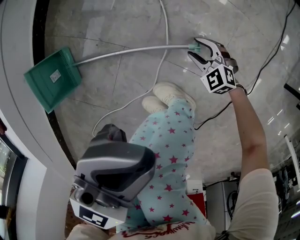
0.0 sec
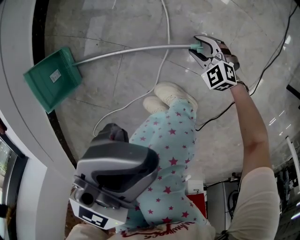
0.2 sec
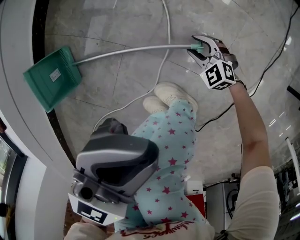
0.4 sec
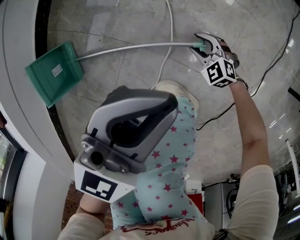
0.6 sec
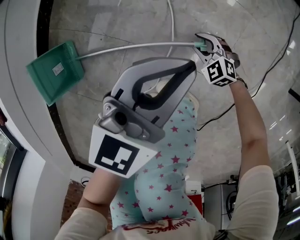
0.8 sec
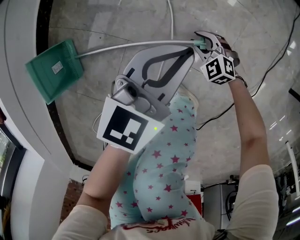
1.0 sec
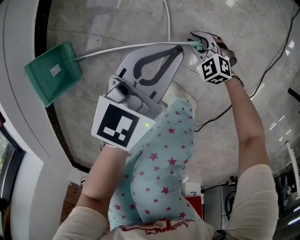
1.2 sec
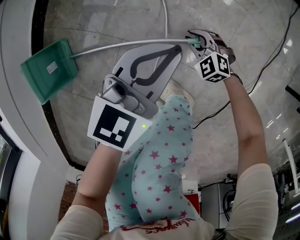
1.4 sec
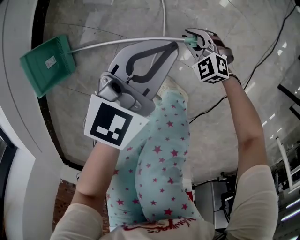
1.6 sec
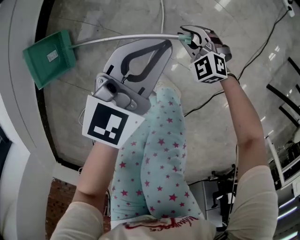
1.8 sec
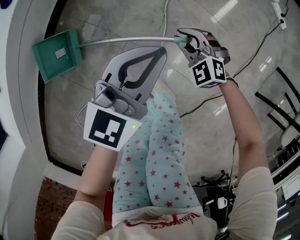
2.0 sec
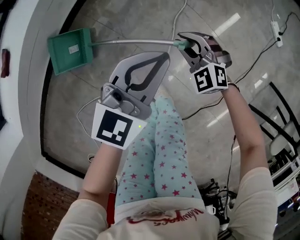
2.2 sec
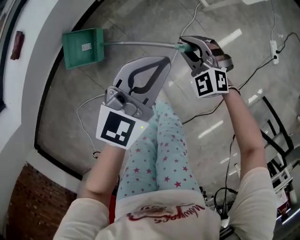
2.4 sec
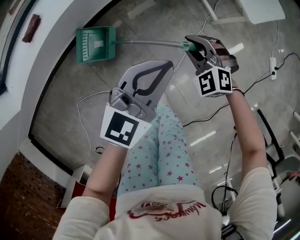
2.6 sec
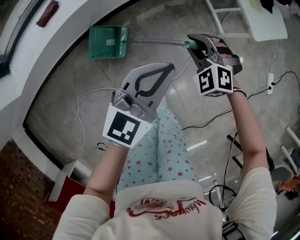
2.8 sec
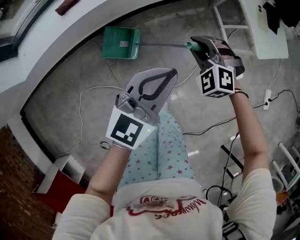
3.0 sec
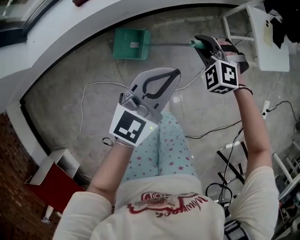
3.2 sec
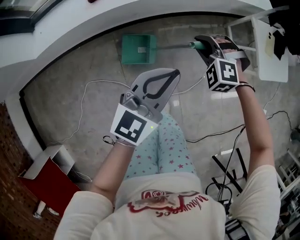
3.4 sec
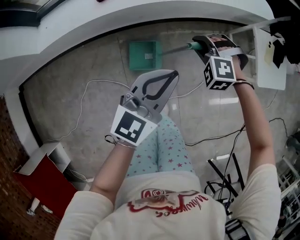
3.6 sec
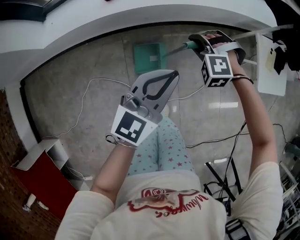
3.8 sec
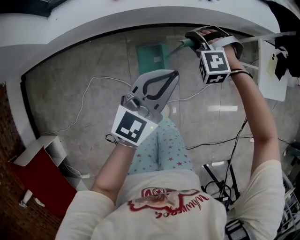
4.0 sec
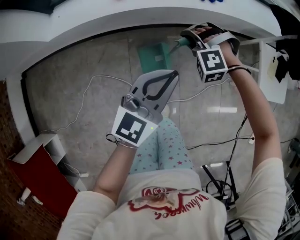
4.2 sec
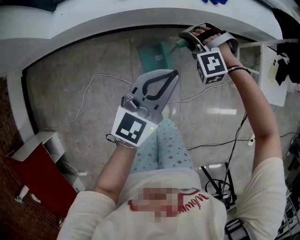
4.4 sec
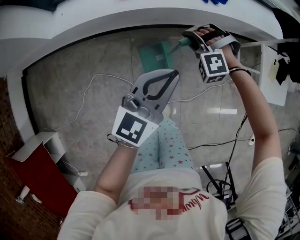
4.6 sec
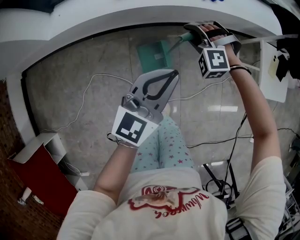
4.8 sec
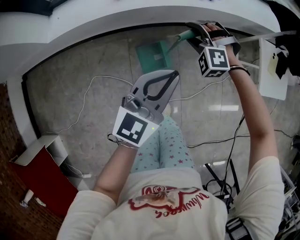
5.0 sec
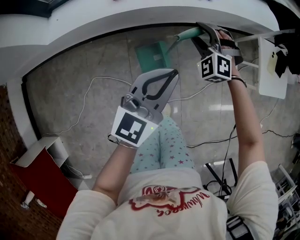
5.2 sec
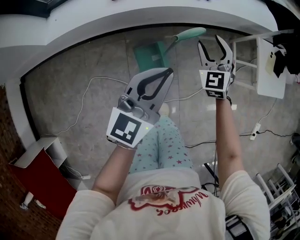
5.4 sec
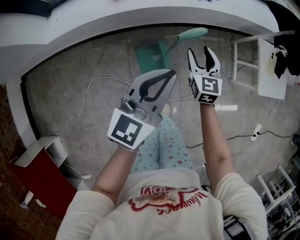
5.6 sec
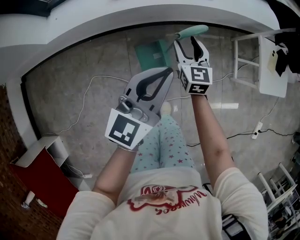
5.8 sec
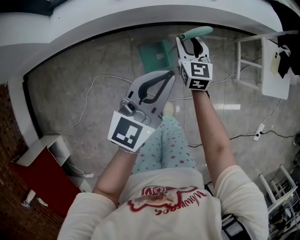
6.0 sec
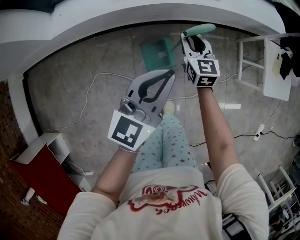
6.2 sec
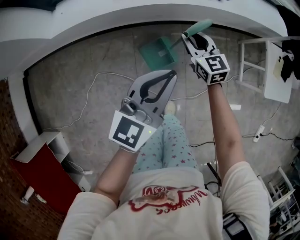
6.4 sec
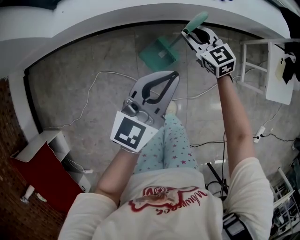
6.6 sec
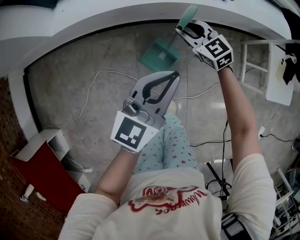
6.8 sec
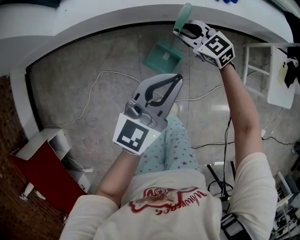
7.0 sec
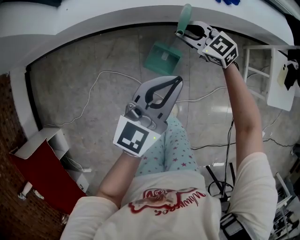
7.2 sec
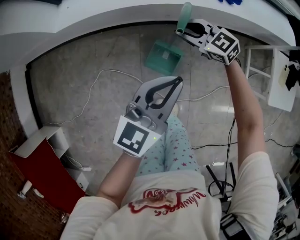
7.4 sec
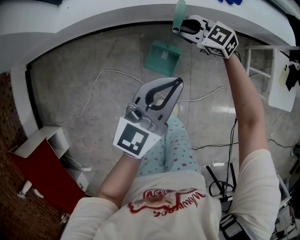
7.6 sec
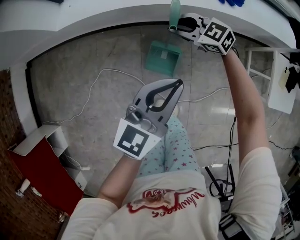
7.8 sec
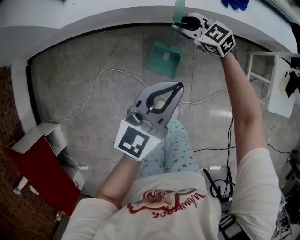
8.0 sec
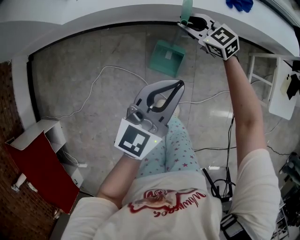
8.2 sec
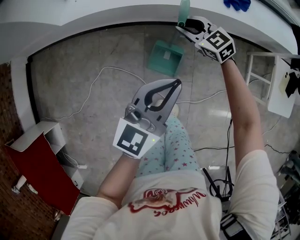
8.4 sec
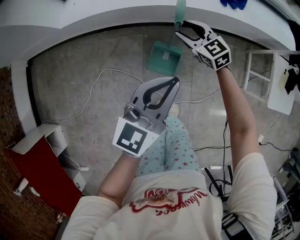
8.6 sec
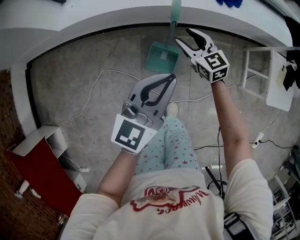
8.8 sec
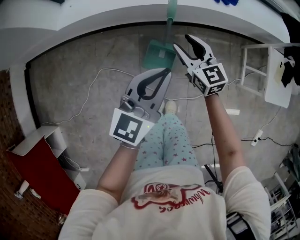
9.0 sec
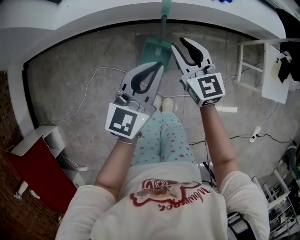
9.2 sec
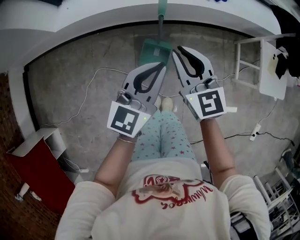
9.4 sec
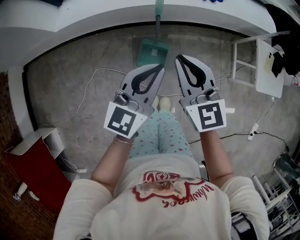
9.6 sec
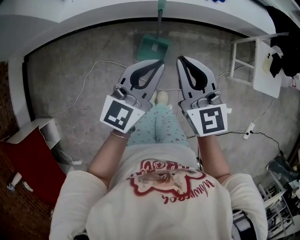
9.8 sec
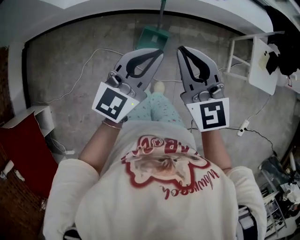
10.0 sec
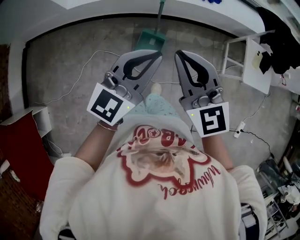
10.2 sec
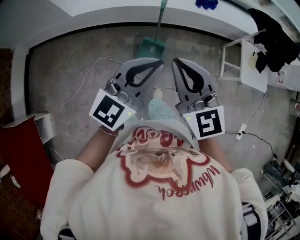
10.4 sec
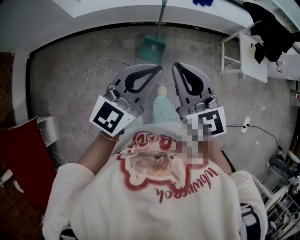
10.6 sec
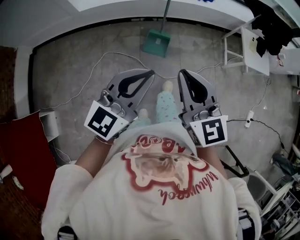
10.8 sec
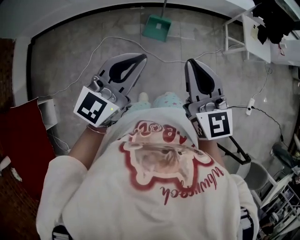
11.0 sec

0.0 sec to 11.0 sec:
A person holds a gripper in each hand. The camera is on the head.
0.0 sec to 1.6 sec: The right gripper closes; the left gripper is displaced downward by roughly 15 cm.
1.6 sec to 3.2 sec: Both grippers travel together upward, approximately 40 cm. The left gripper swivels about 50 degrees. The right gripper rolls counterclockwise, seen from behind, by approximately 60 degrees.
3.2 sec to 4.8 sec: The right gripper travels to the left by approximately 15 cm, and turns by roughly 30 degrees, while the left gripper shifts some 10 cm to the left and upward.
4.8 sec to 6.2 sec: The right gripper reaches some 10 cm to the right, then returns, rotates around the line of its fingers by approximately 90 degrees, clockwise from behind, and opens, then closes again.
6.2 sec to 7.8 sec: The right gripper ends up about 10 cm from where it was, and changes its angle by some 60 degrees.
7.8 sec to 9.4 sec: The right gripper shifts roughly 20 cm upward and backward, changes its angle by about 50 degrees, and opens and closes again.
9.4 sec to 11.0 sec: Both grippers are carried backward, approximately 40 cm. The two grippers go roughly 20 cm upward.

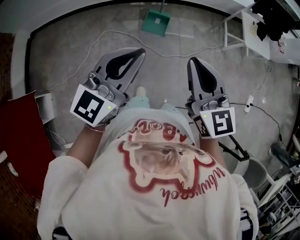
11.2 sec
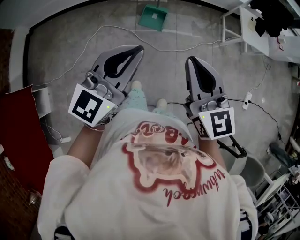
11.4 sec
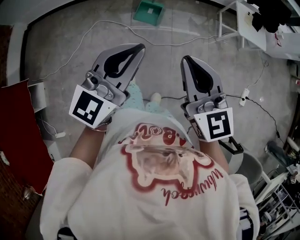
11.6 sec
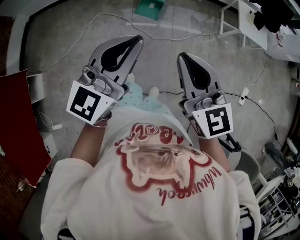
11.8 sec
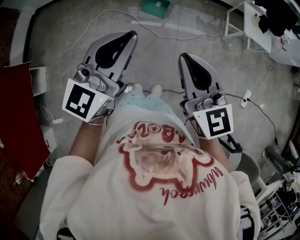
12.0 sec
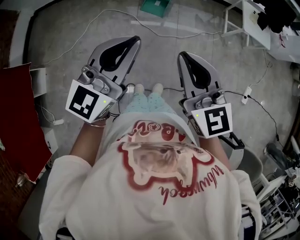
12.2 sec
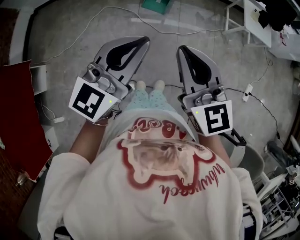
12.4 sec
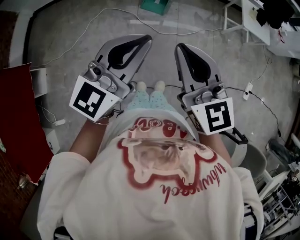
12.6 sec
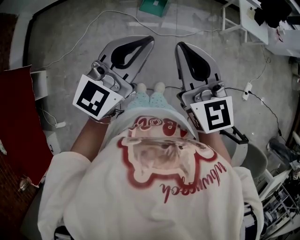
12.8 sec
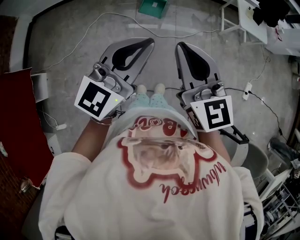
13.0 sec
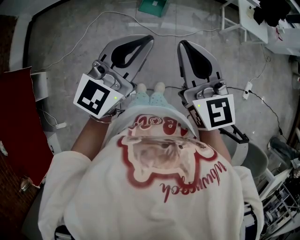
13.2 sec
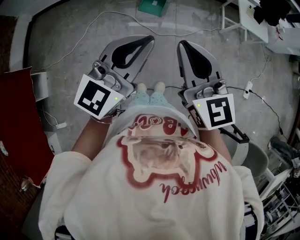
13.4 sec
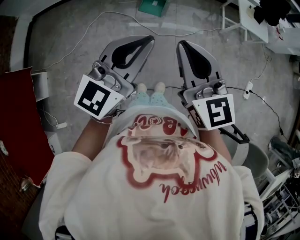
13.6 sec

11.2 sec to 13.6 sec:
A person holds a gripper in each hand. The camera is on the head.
11.2 sec to 12.4 sec: The right gripper is displaced backward by approximately 15 cm. The left gripper shifts about 15 cm backward and to the right.
12.4 sec to 13.6 sec: The grippers make only small movements.

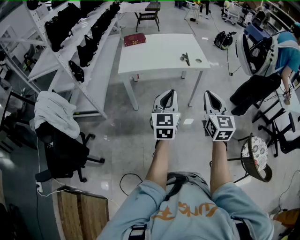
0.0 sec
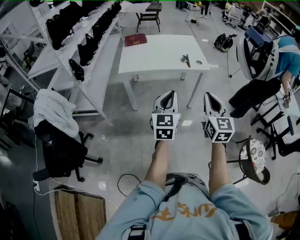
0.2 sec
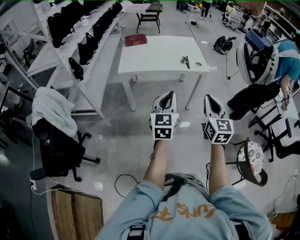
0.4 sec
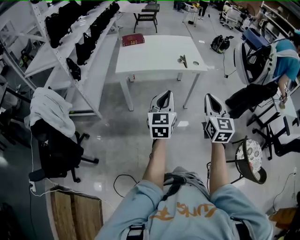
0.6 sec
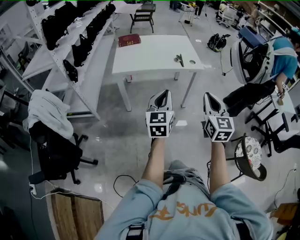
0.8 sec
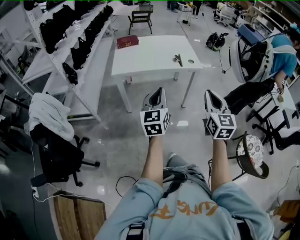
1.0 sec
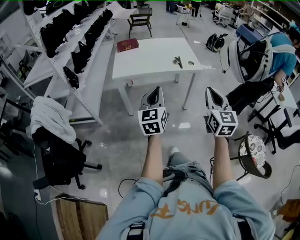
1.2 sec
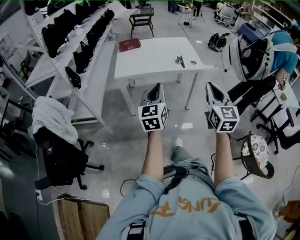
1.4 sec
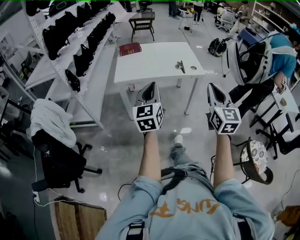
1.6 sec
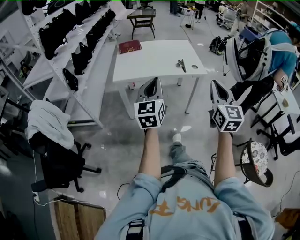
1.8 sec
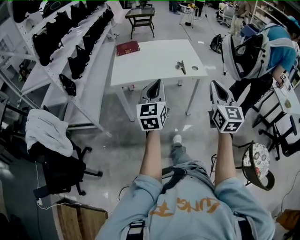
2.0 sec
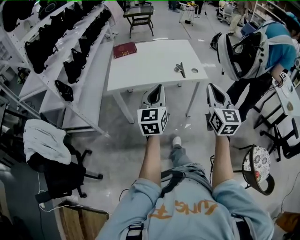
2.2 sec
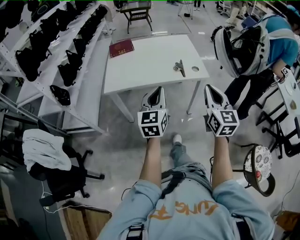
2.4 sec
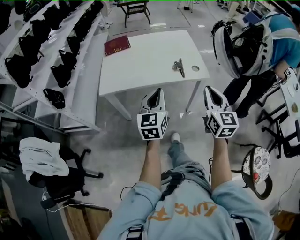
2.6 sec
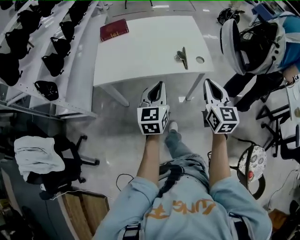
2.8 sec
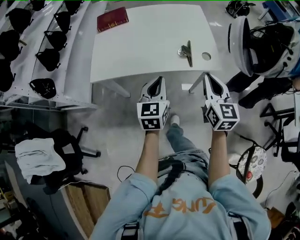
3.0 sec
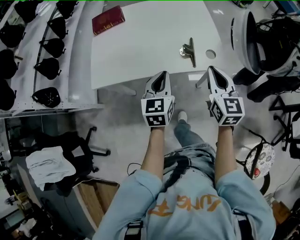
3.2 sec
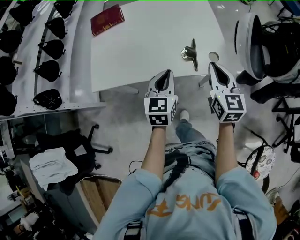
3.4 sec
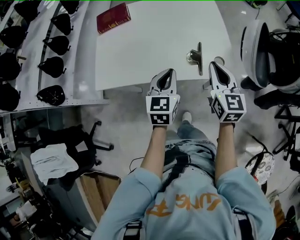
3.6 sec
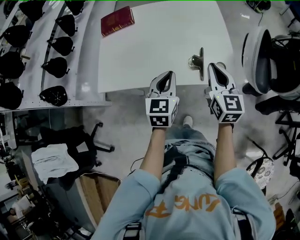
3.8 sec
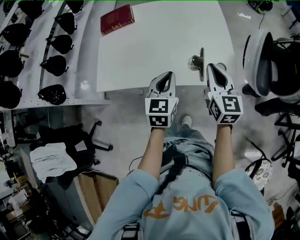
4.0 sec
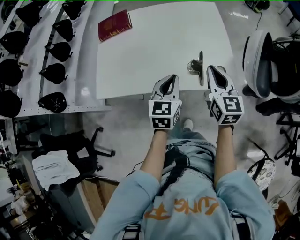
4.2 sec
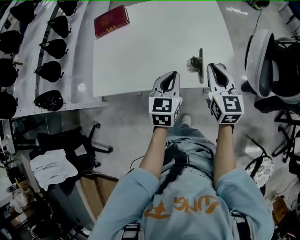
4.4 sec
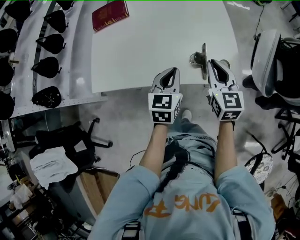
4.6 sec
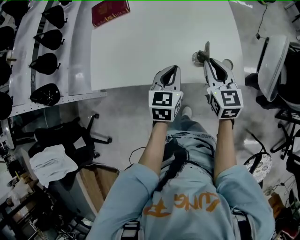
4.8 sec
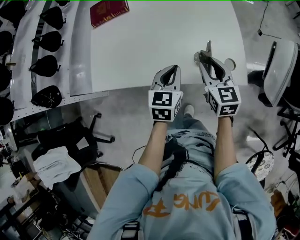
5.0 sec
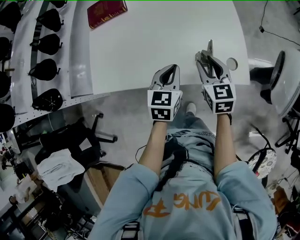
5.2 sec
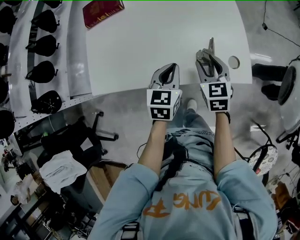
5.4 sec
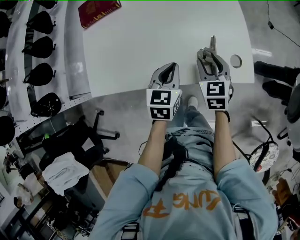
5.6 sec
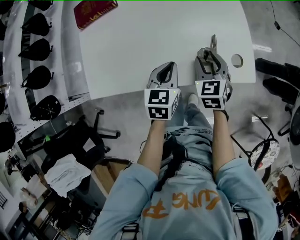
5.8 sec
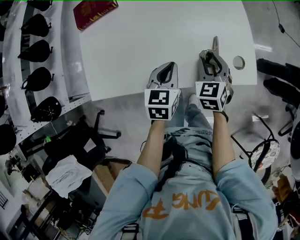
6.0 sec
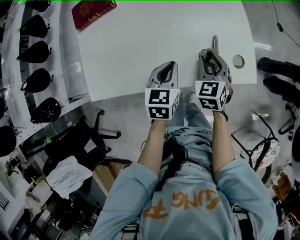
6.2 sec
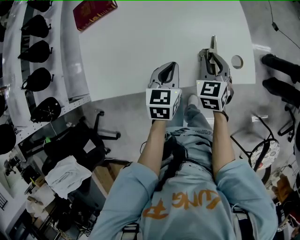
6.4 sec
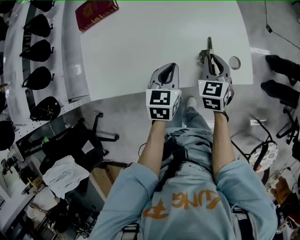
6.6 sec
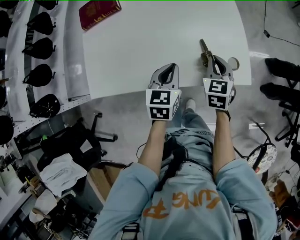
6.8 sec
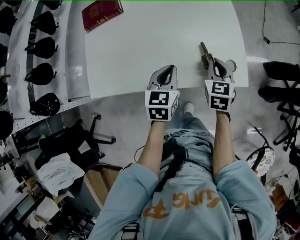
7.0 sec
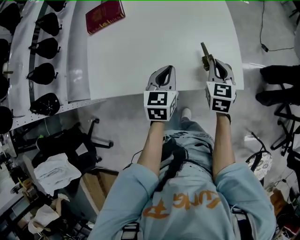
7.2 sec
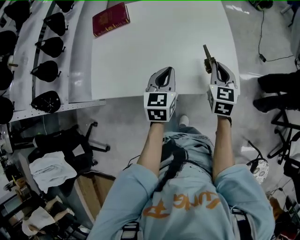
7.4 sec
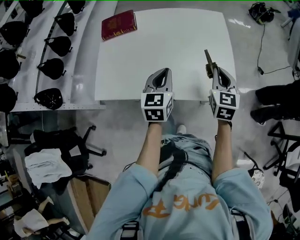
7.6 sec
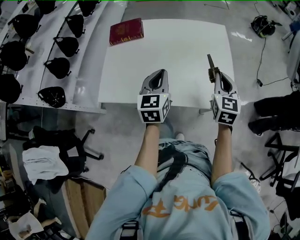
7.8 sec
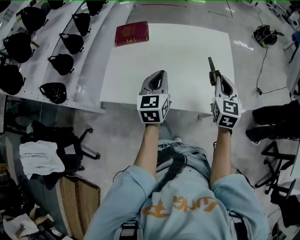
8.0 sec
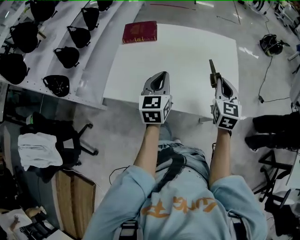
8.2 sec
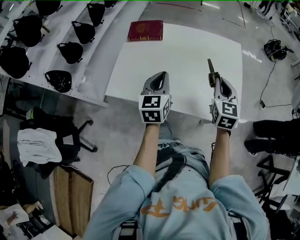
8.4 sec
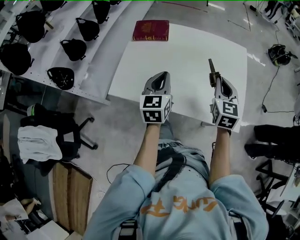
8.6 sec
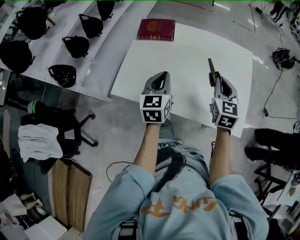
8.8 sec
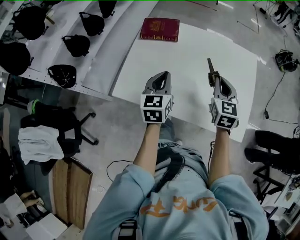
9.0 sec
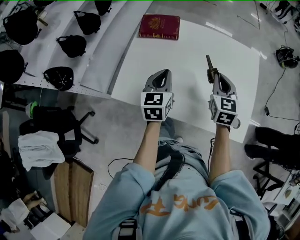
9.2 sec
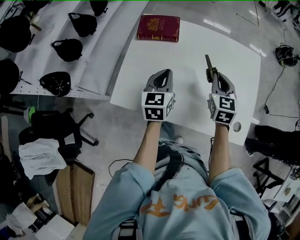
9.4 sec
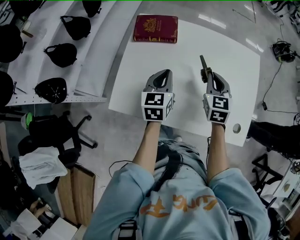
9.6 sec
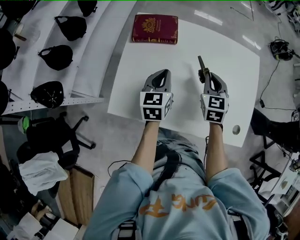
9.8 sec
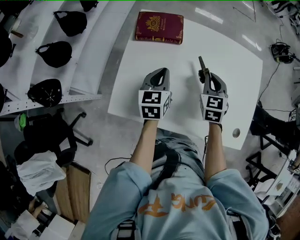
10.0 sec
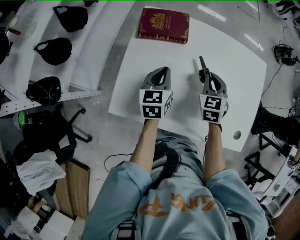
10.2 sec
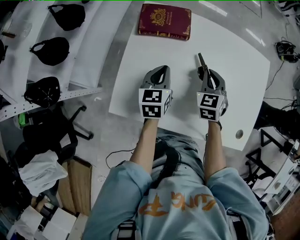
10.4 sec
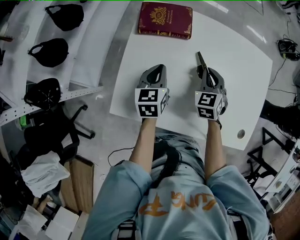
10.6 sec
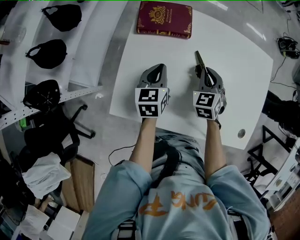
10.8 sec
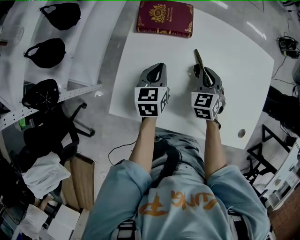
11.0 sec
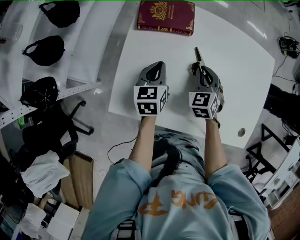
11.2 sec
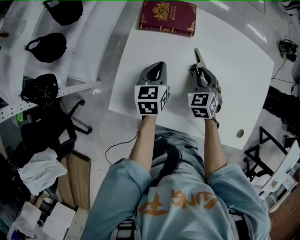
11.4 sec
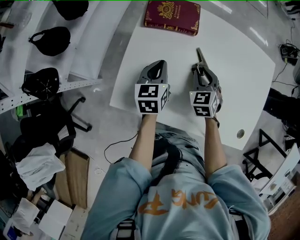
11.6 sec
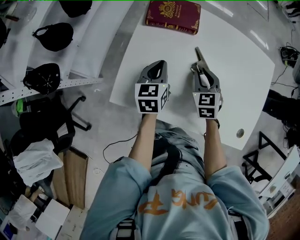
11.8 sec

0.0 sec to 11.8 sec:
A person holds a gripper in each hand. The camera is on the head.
0.0 sec to 1.4 sec: The left gripper moves roughly 5 cm.
1.4 sec to 3.0 sec: The grippers both shift forward by roughly 35 cm. The left gripper swivels roughly 20 degrees.
3.0 sec to 4.4 sec: Both grippers move forward, roughly 15 cm.
4.4 sec to 6.0 sec: The right gripper travels downward by about 15 cm, swivels about 30 degrees, and opens its fingers. Meanwhile the left gripper goes some 10 cm downward, forward and to the left.
6.0 sec to 7.4 sec: The right gripper is displaced upward and to the right by some 10 cm, and closes up. The left gripper is displaced upward by roughly 10 cm.
7.4 sec to 8.8 sec: The left gripper travels to the left and upward by approximately 15 cm, and turns by roughly 20 degrees. Meanwhile the right gripper heads to the left, upward and forward, covering roughly 15 cm.
8.8 sec to 10.4 sec: The right gripper travels forward, to the left and downward by approximately 25 cm, and changes its angle by some 30 degrees. Meanwhile the left gripper goes roughly 20 cm forward, downward and to the left.
10.4 sec to 11.8 sec: The right gripper ends up some 5 cm from where it was.
